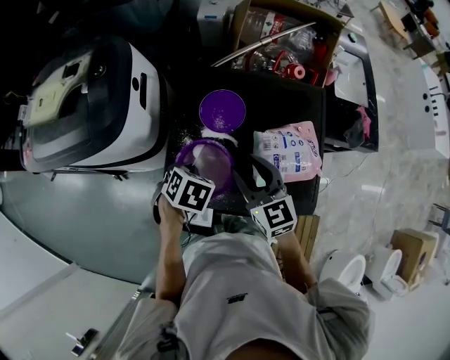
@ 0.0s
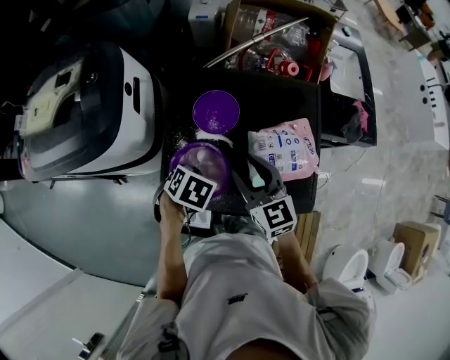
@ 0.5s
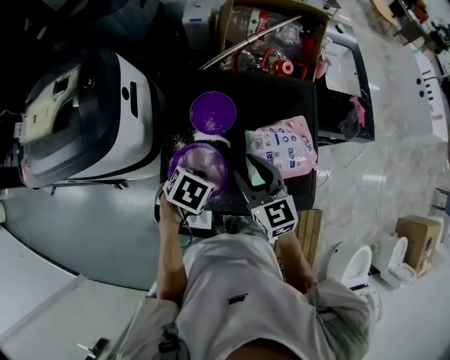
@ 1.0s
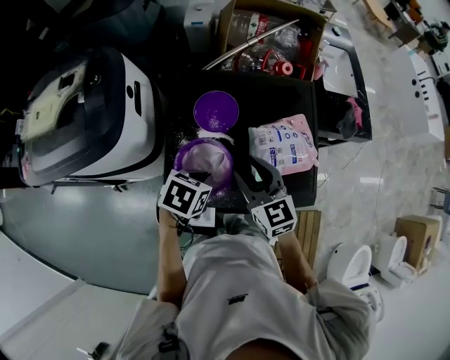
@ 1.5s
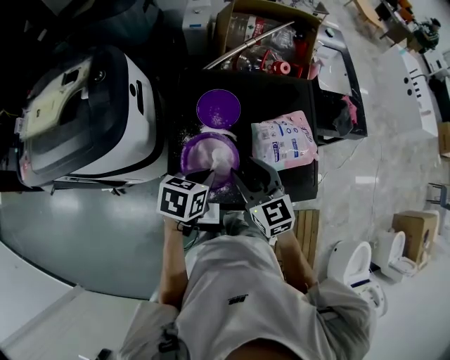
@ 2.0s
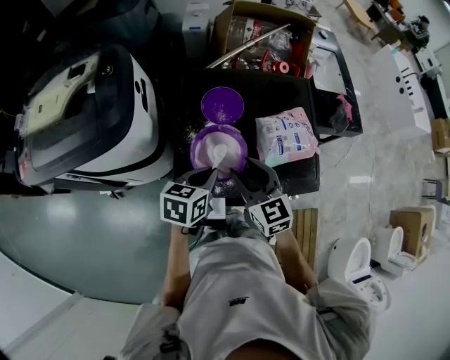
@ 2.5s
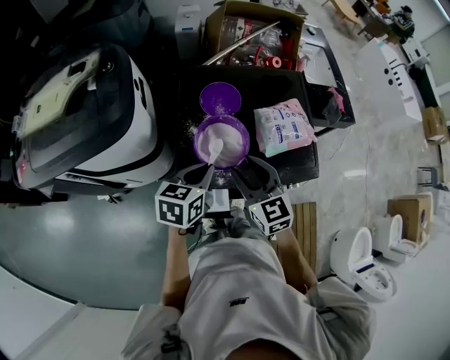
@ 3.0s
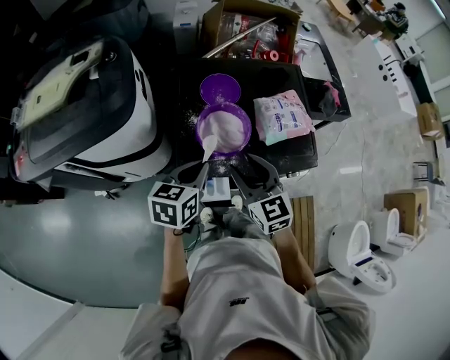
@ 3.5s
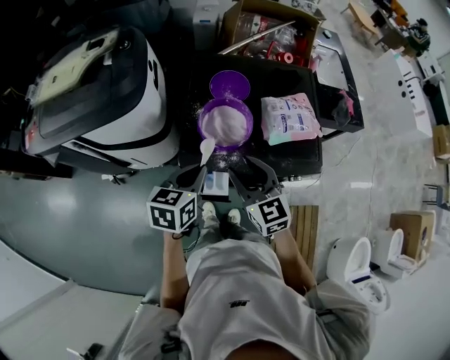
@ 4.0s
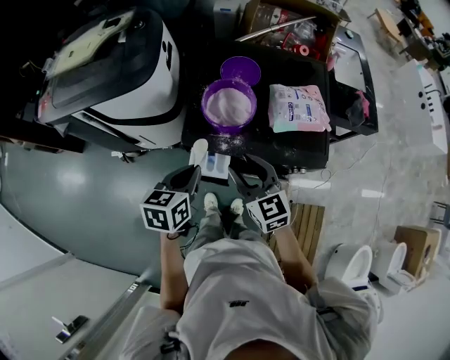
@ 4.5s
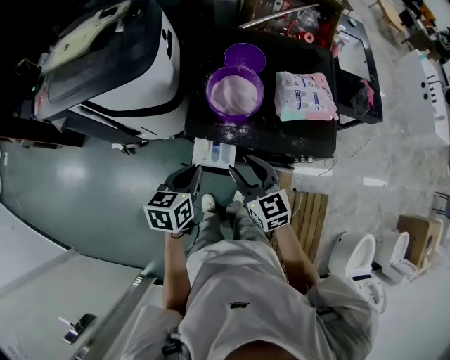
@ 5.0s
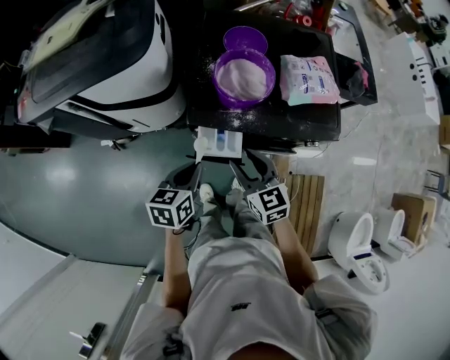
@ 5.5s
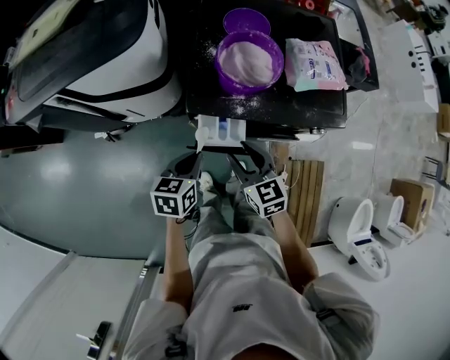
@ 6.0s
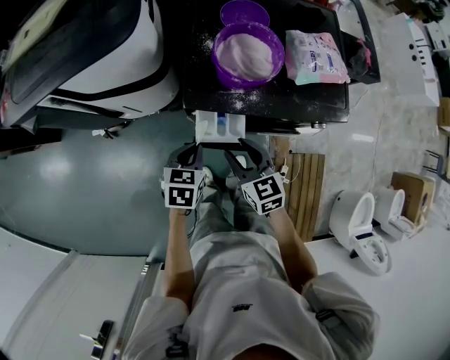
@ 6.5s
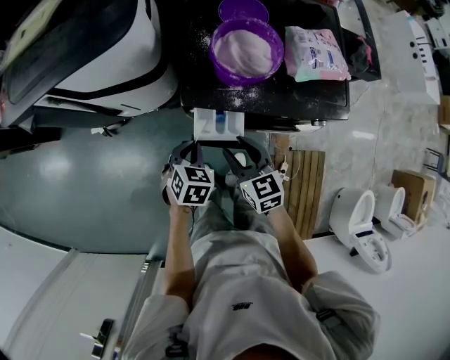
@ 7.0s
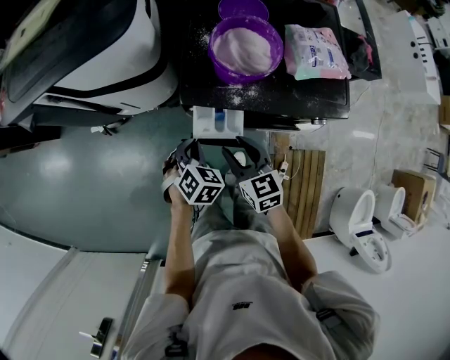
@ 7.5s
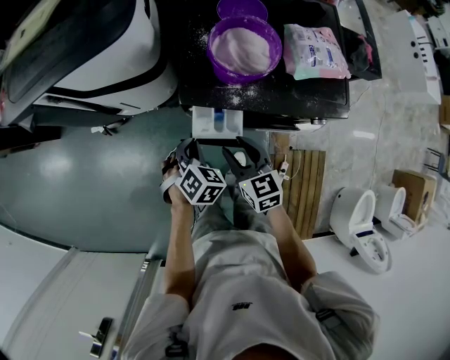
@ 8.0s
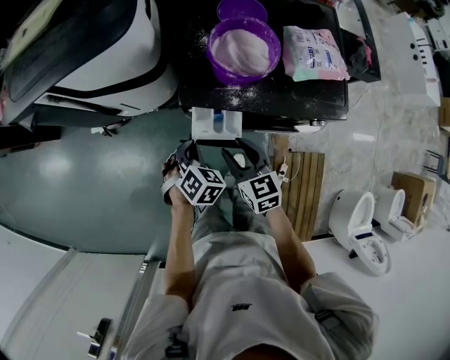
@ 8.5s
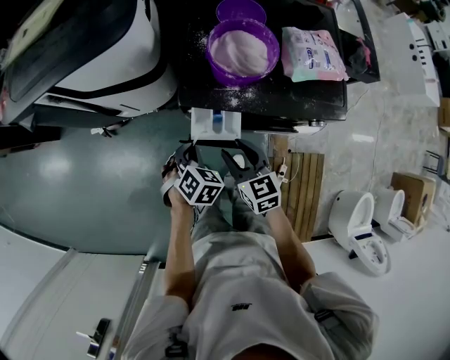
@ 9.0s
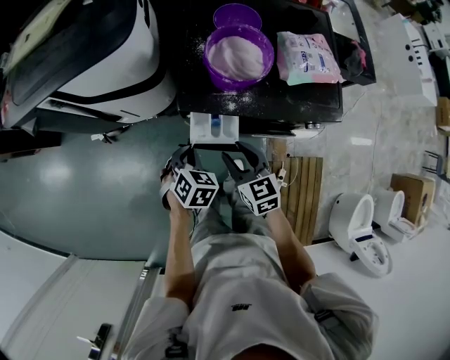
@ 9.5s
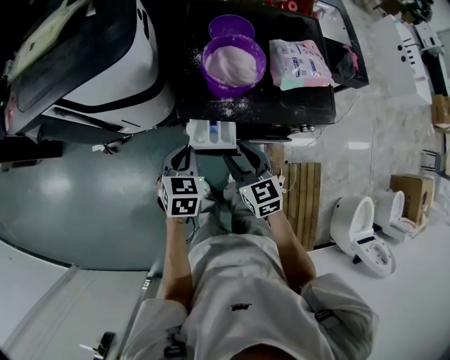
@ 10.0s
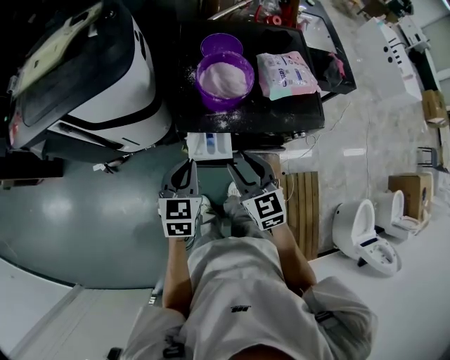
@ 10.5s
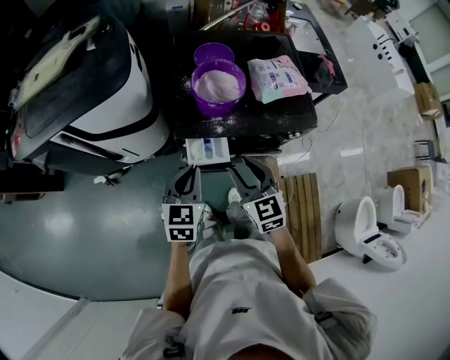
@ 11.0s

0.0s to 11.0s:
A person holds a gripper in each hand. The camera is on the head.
0.0s to 2.0s: The left gripper moves about 5 cm, and changes its angle by some 30 degrees. The right gripper changes place by some 5 cm.
2.0s to 3.5s: The right gripper is displaced backward by about 10 cm. Meanwhile the left gripper moves backward and to the left, about 10 cm.
3.5s to 5.5s: The left gripper moves backward and downward, some 20 cm. The right gripper travels downward and backward by some 15 cm.
5.5s to 7.5s: The right gripper goes approximately 5 cm downward. Meanwhile the left gripper travels downward by approximately 10 cm, and rolls clockwise, seen from behind, by approximately 40 degrees.
7.5s to 9.0s: Both grippers stay put.
9.0s to 11.0s: Both grippers travel together upward, approximately 15 cm. The left gripper angles its fingers upward, by about 30 degrees.

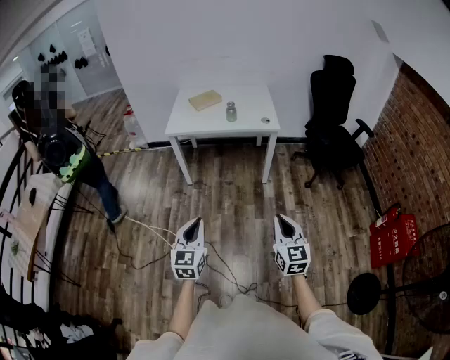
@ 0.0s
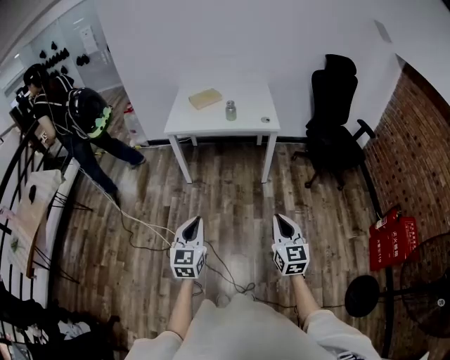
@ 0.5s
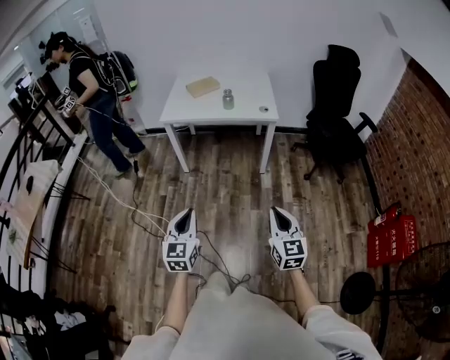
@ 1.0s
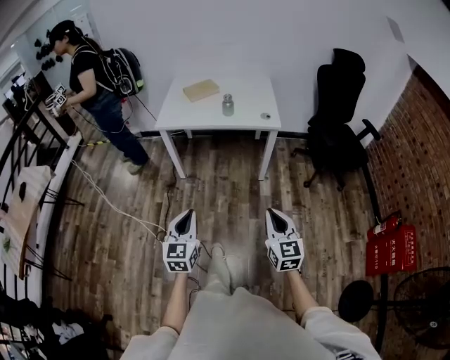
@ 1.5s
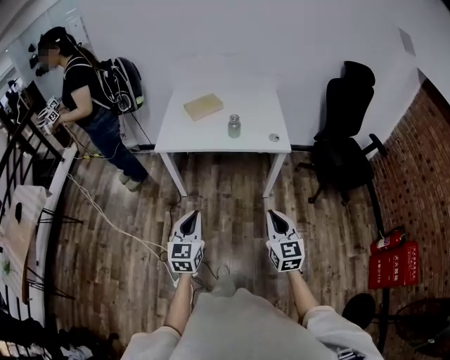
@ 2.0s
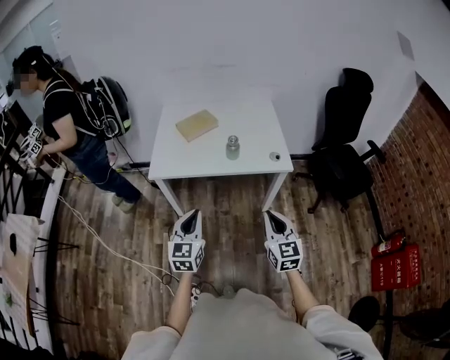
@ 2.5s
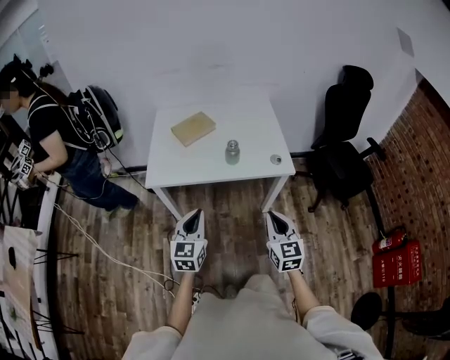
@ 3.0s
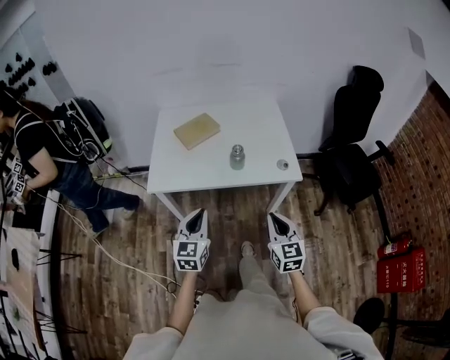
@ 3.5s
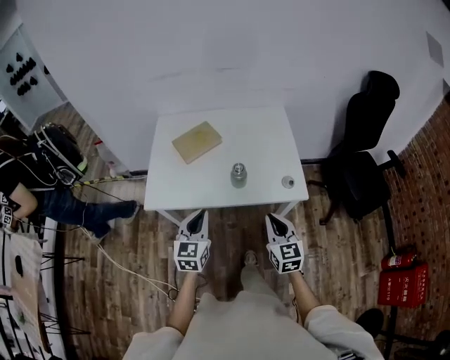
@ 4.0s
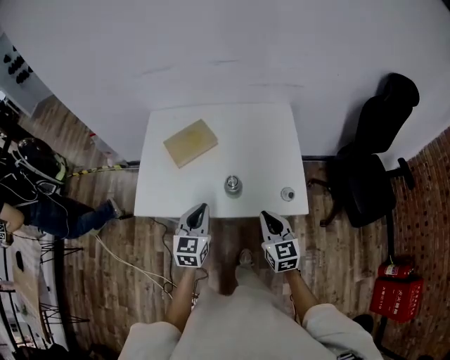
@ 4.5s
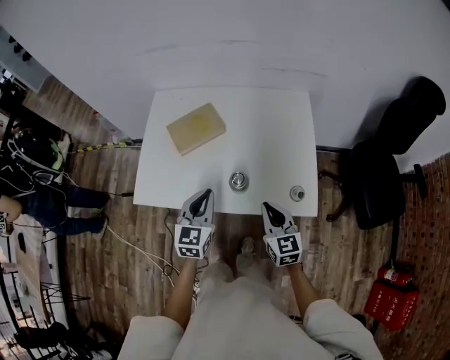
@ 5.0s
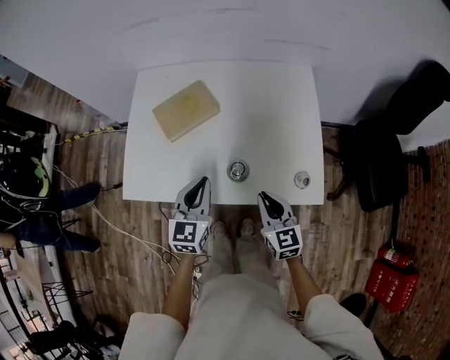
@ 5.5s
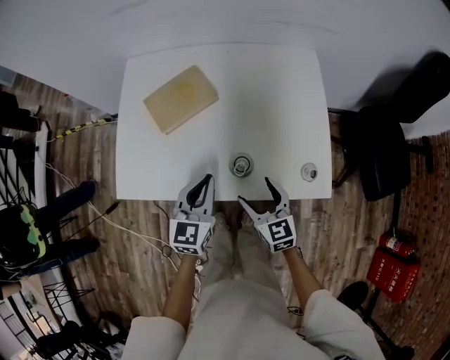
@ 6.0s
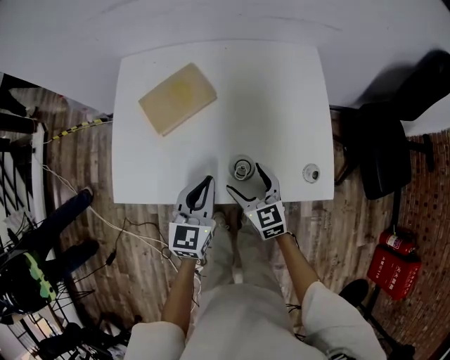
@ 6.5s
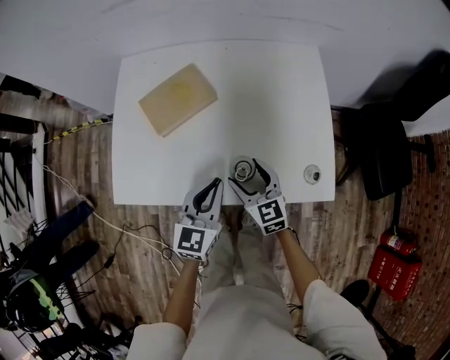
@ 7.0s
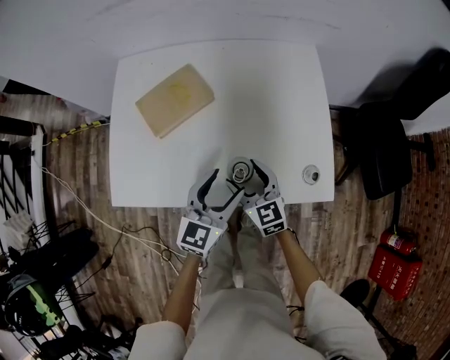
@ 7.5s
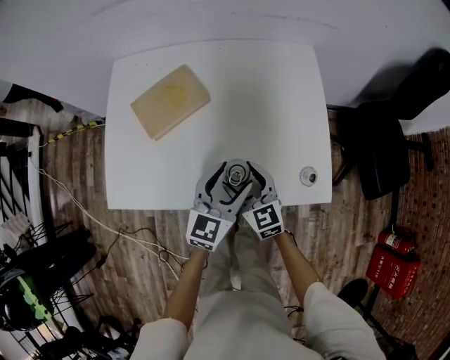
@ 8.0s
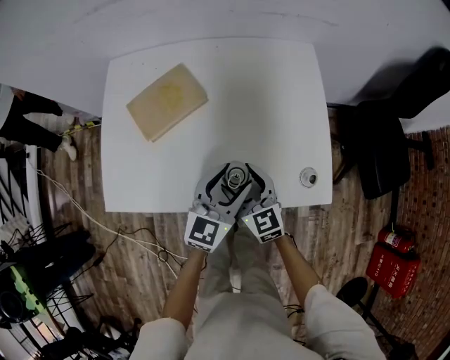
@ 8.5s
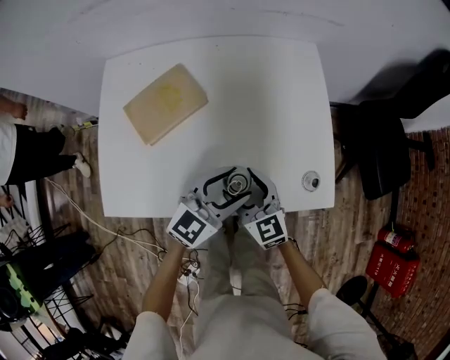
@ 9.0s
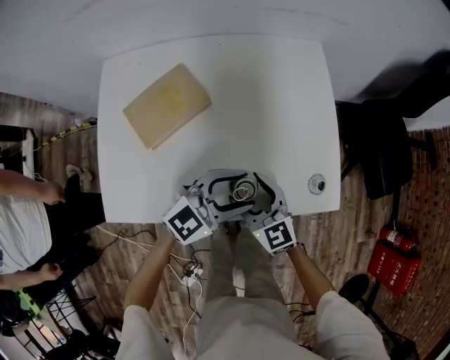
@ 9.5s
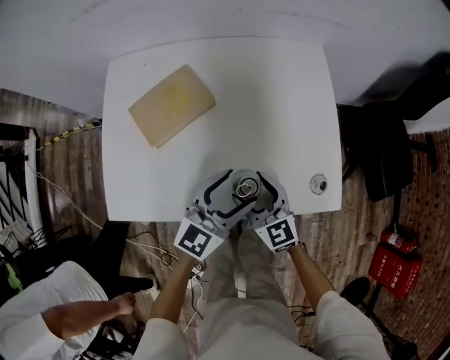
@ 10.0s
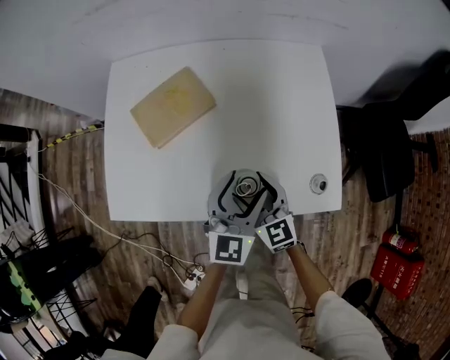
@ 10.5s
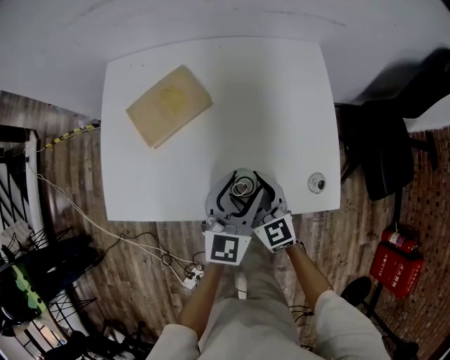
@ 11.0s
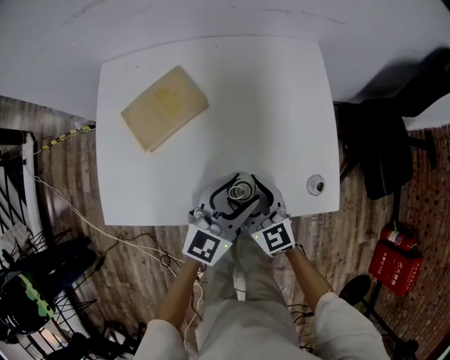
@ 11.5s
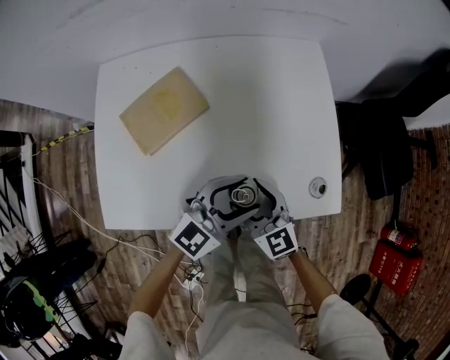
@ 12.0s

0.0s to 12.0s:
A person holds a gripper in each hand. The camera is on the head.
0.0s to 2.0s: The grippers both shift forward by about 30 cm.
2.0s to 4.0s: Both grippers move forward, approximately 40 cm.
4.0s to 6.0s: Both grippers travel together forward and downward, roughly 25 cm. The right gripper opens.
6.0s to 8.0s: The right gripper shifts some 5 cm forward, while the left gripper moves to the right, roughly 10 cm, and opens.

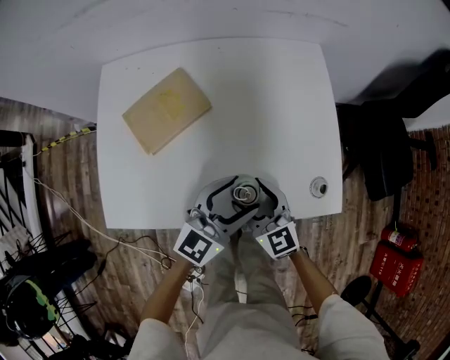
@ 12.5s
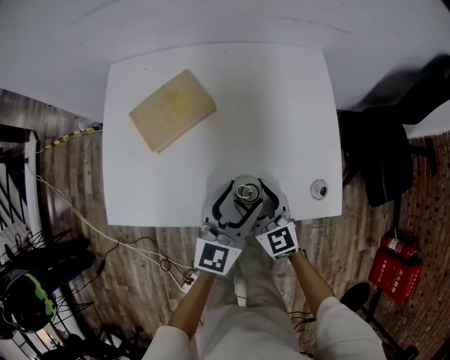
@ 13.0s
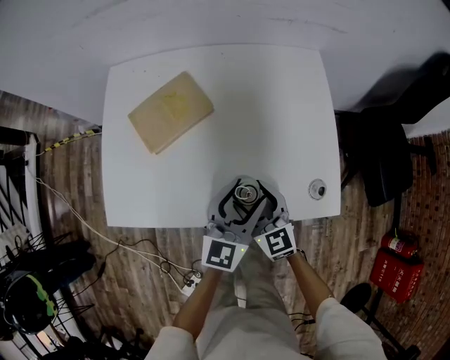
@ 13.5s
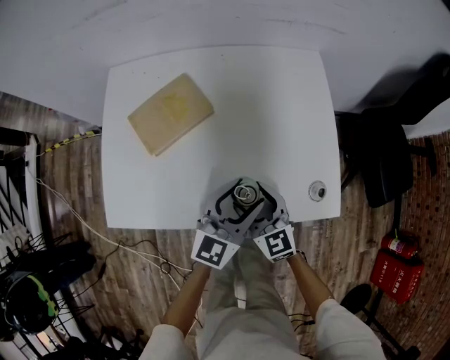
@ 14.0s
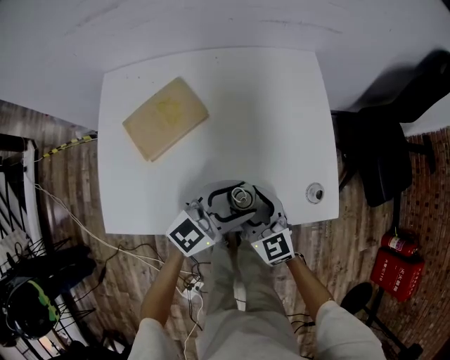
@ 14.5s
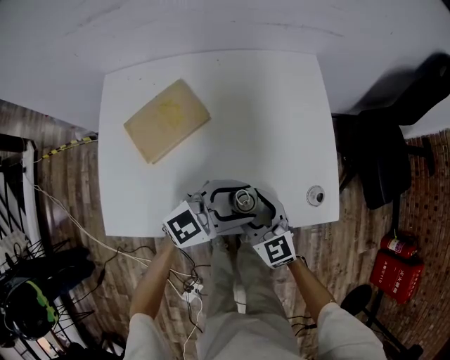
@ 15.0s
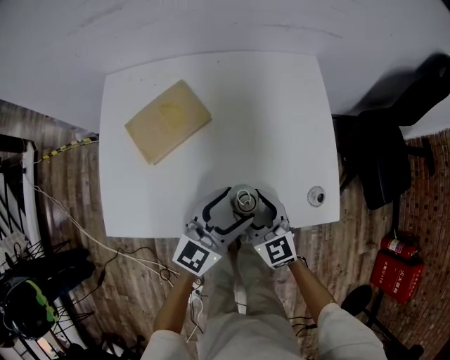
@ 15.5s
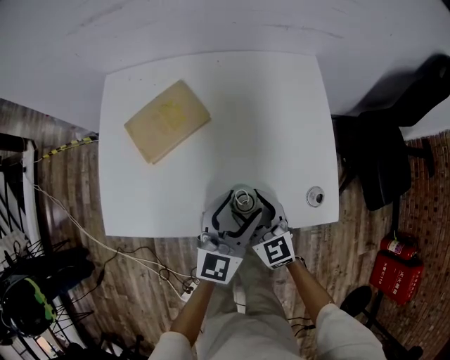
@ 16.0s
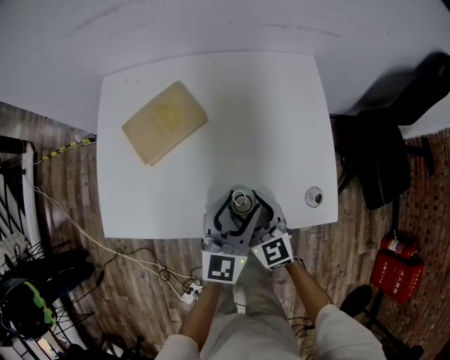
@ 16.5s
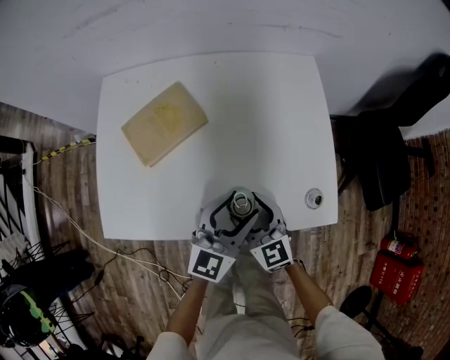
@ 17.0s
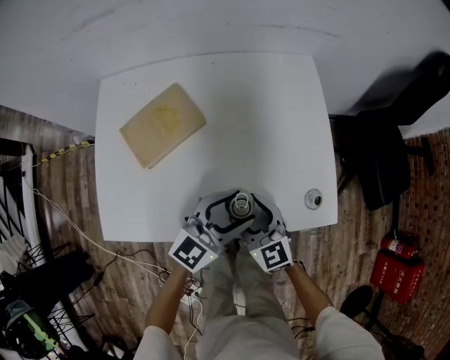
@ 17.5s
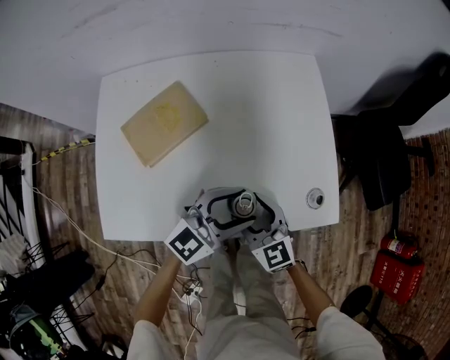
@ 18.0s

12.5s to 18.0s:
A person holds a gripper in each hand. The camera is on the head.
14.5s to 16.0s: The left gripper rotates about 30 degrees.
16.0s to 18.0s: The left gripper rotates about 30 degrees.
